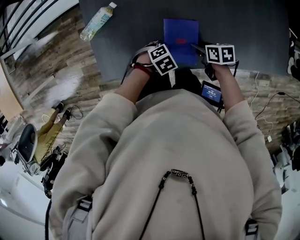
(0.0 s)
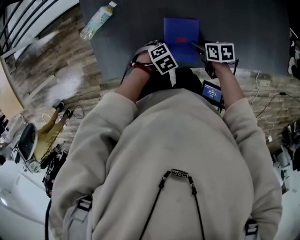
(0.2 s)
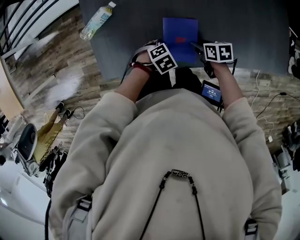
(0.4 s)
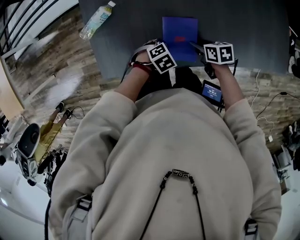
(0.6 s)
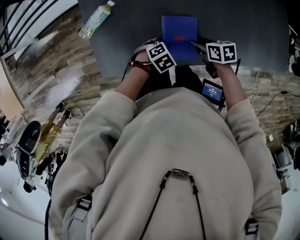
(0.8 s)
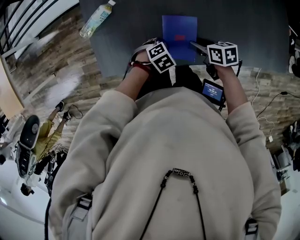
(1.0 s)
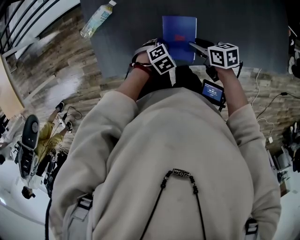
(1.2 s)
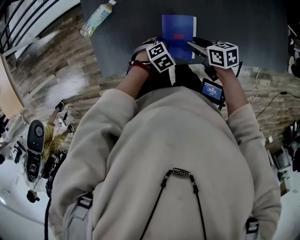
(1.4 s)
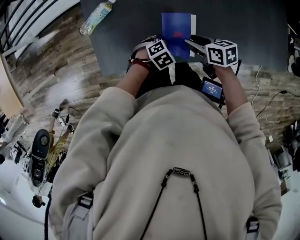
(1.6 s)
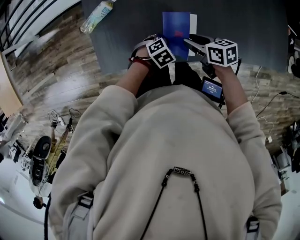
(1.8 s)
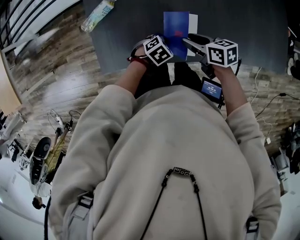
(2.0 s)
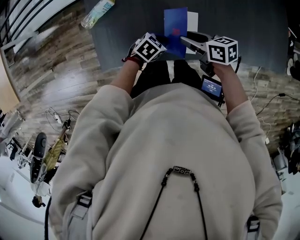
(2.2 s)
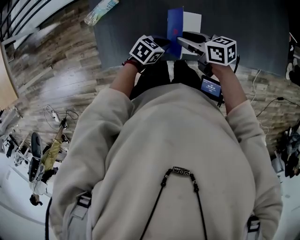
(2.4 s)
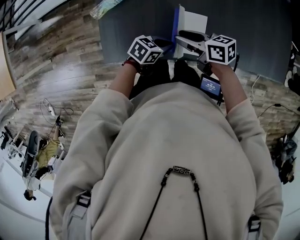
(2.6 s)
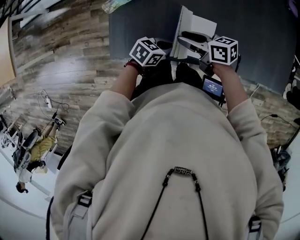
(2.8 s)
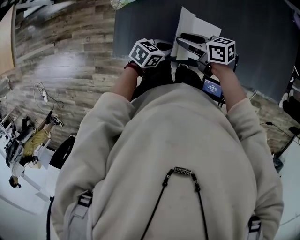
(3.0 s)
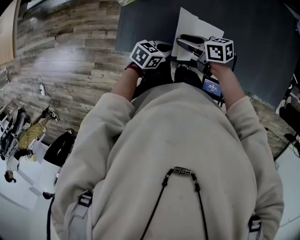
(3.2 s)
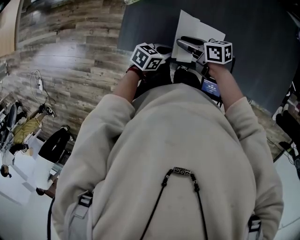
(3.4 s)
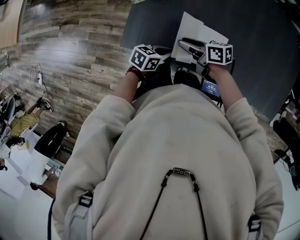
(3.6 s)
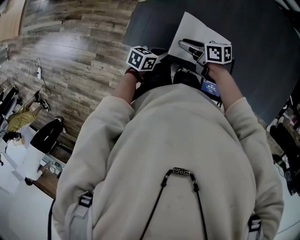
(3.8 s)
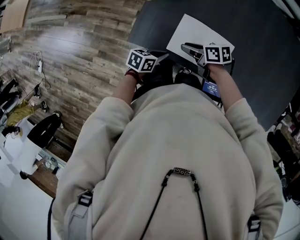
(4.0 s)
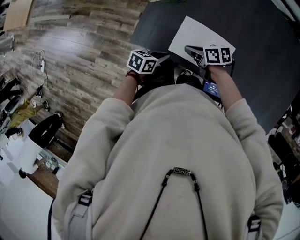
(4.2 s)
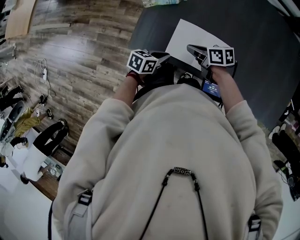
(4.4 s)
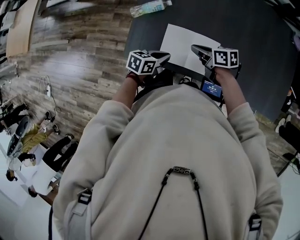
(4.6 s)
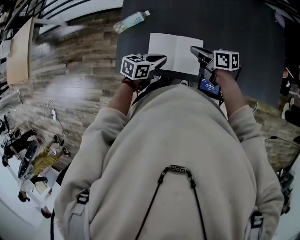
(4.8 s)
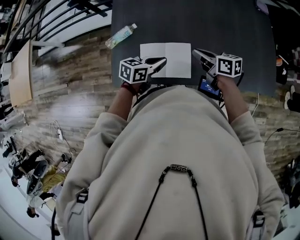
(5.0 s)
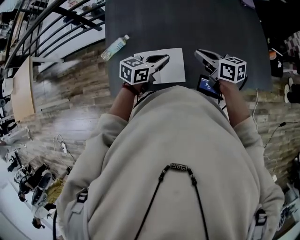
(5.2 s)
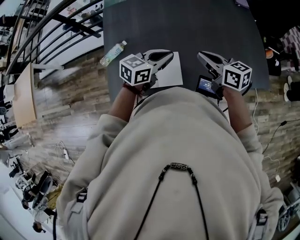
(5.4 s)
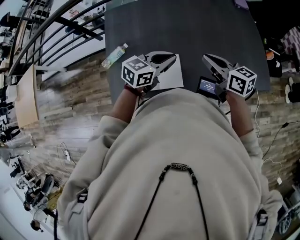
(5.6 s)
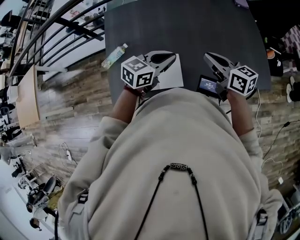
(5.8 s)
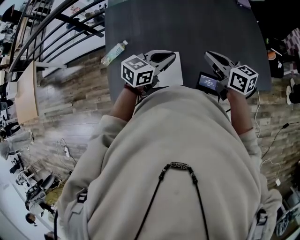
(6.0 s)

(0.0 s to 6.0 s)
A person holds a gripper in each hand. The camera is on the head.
0.0 s - 1.6 s: The right gripper is displaced upward by some 5 cm.
1.6 s - 3.0 s: The left gripper moves upward, some 10 cm, and tilts its fingers approximately 40 degrees upward, while the right gripper moves roughly 15 cm, and turns by about 20 degrees.
3.0 s - 4.4 s: The right gripper closes its fingers, while the left gripper changes place by about 10 cm, and turns by roughly 20 degrees.
4.4 s - 6.0 s: The right gripper shifts by roughly 40 cm, and turns by roughly 50 degrees, while the left gripper shifts by some 35 cm, and changes its angle by about 40 degrees.

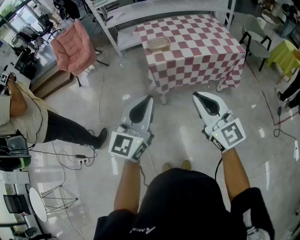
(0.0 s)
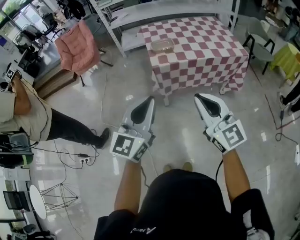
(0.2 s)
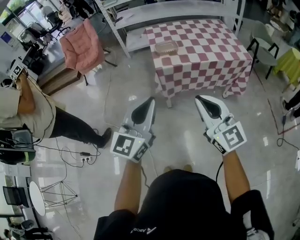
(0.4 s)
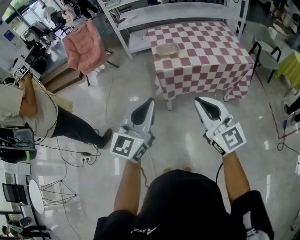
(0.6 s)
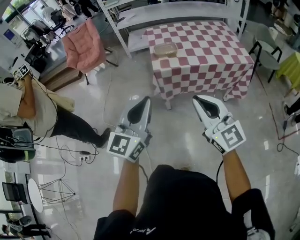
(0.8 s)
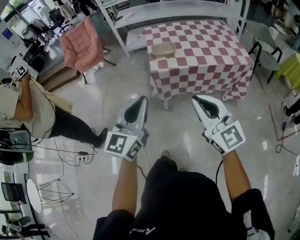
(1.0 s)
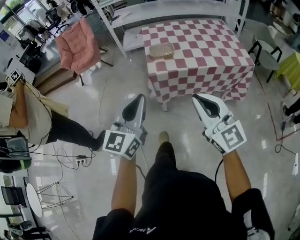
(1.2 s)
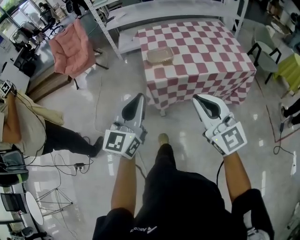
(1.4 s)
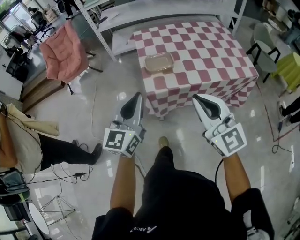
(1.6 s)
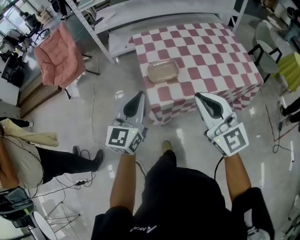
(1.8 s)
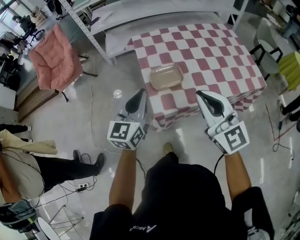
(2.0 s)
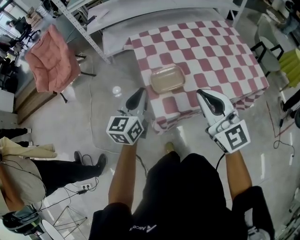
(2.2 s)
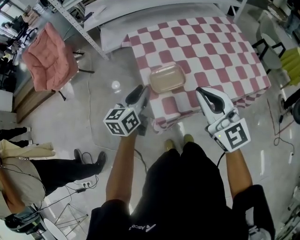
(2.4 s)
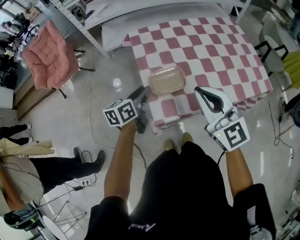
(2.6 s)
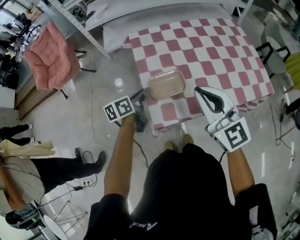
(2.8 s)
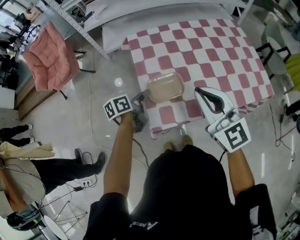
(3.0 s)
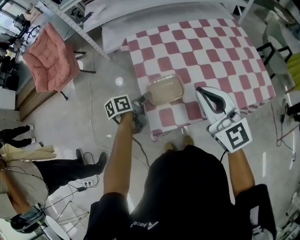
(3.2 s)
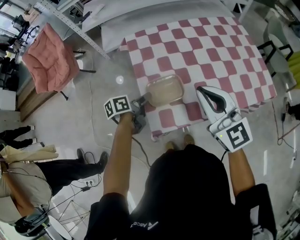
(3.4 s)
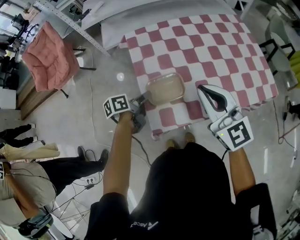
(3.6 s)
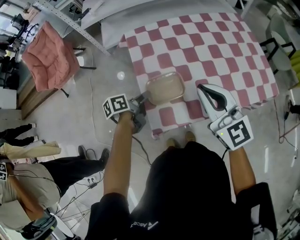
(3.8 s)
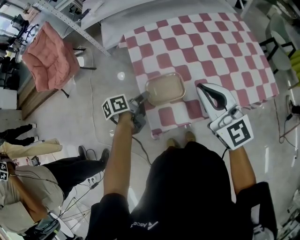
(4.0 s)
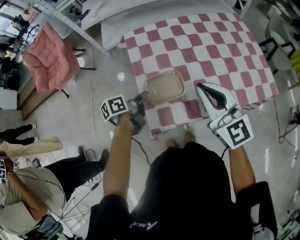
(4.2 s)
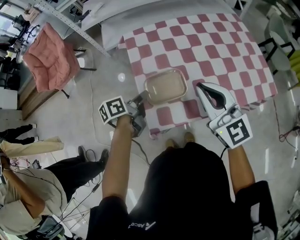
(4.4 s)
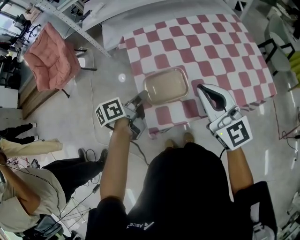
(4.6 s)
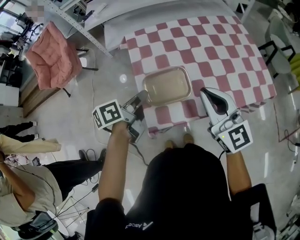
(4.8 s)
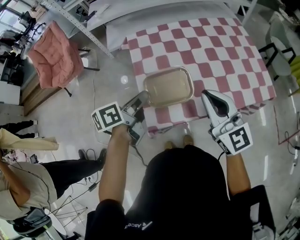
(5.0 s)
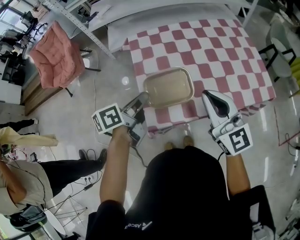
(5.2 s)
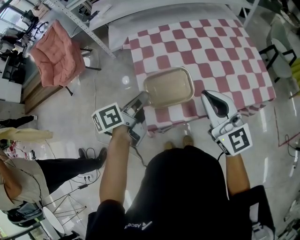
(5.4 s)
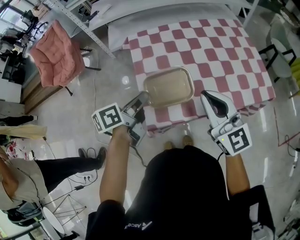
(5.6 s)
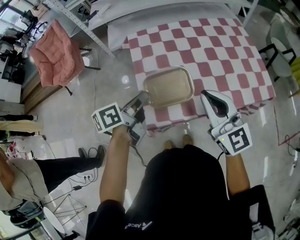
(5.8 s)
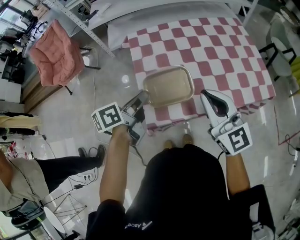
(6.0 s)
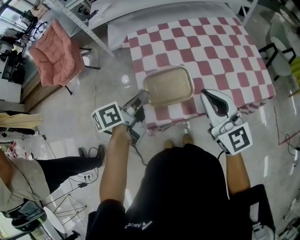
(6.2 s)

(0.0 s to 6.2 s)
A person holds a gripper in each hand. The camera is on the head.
0.0 s - 1.6 s: The grippers both shift forward by approximately 30 cm.
1.6 s - 3.2 s: The right gripper goes about 30 cm forward. The left gripper goes approximately 40 cm forward and downward, rotates around the line of its fingers by approximately 60 degrees, counterclockwise from behind, and opens.
3.2 s - 4.6 s: The left gripper travels upward by about 10 cm, and closes.
4.6 s - 6.2 s: The left gripper goes roughly 5 cm upward.

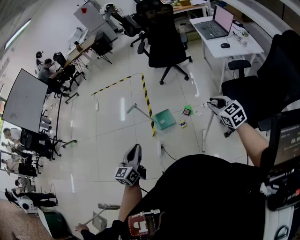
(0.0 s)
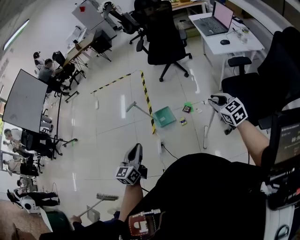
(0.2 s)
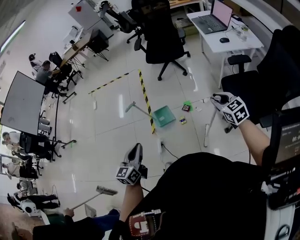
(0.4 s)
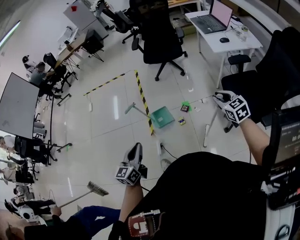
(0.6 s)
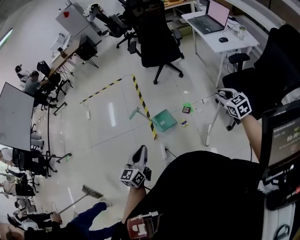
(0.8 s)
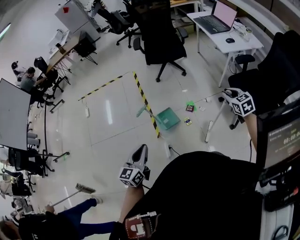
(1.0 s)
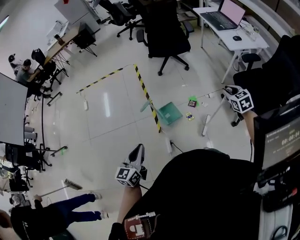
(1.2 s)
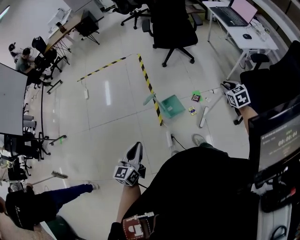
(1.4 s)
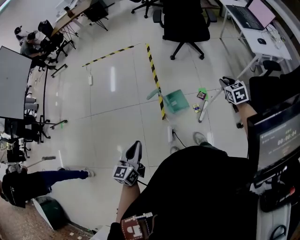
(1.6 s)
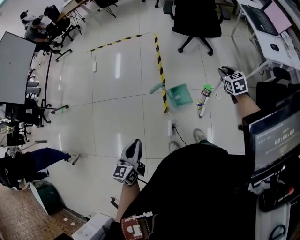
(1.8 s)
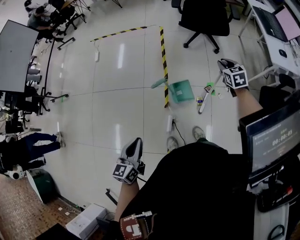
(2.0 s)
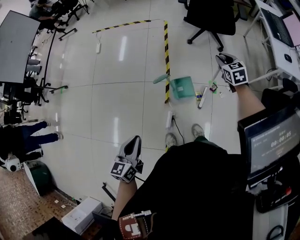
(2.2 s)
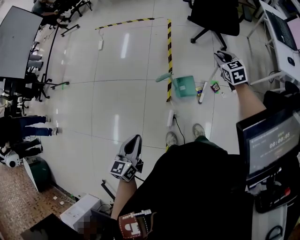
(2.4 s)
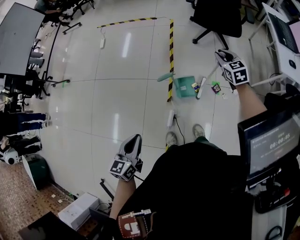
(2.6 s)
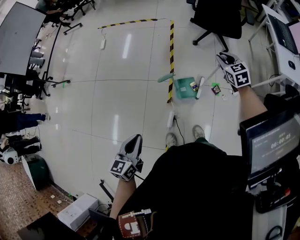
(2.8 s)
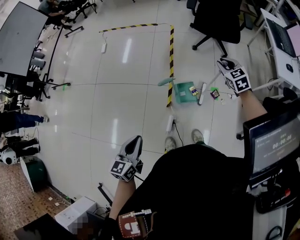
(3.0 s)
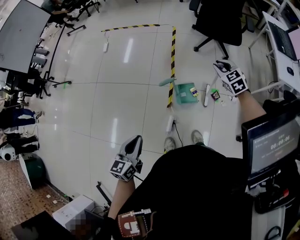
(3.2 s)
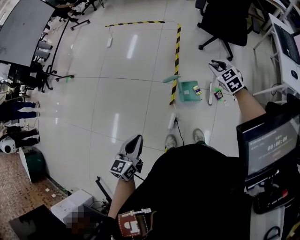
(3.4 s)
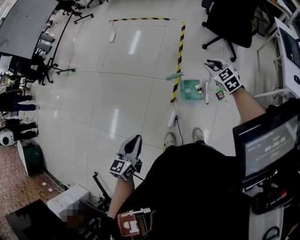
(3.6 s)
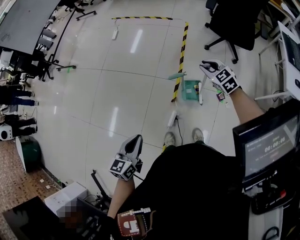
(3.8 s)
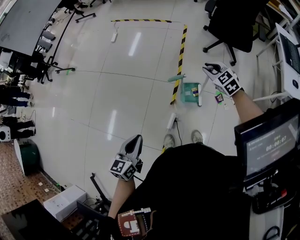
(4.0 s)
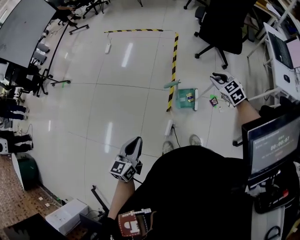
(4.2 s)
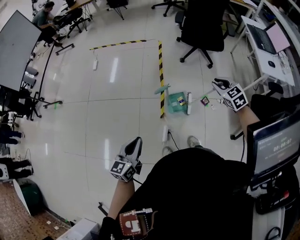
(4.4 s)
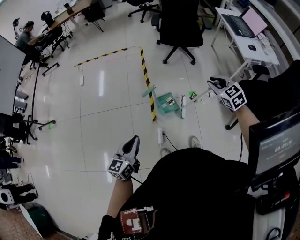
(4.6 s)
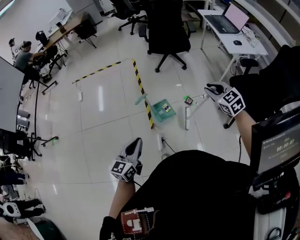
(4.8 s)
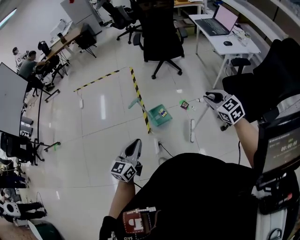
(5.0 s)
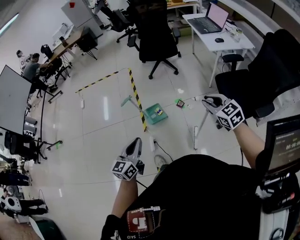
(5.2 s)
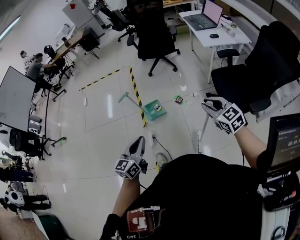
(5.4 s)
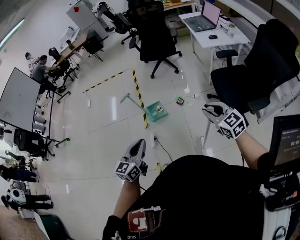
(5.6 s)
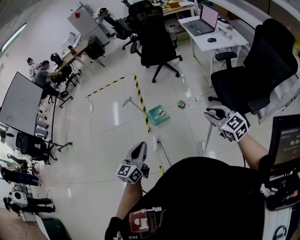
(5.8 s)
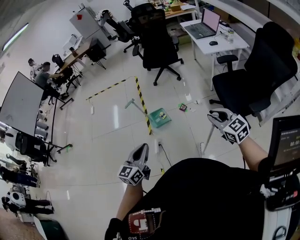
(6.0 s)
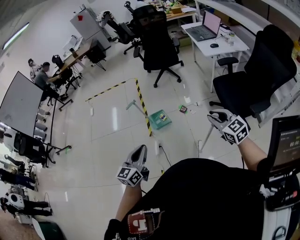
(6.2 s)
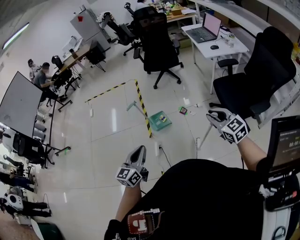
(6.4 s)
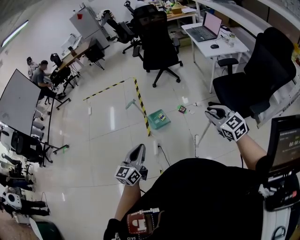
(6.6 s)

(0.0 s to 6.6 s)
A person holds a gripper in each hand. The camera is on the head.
0.0 s - 1.6 s: The right gripper shifts roughly 35 cm forward, to the left and downward, and swivels roughly 20 degrees. Meanwhile the left gripper moves to the left, some 25 cm.
1.6 s - 3.2 s: The right gripper moves to the left and forward, about 20 cm, and rotates about 30 degrees.
3.2 s - 5.0 s: The right gripper changes place by roughly 40 cm, while the left gripper moves approximately 15 cm, and turns by approximately 30 degrees.
5.0 s - 6.6 s: Both grippers move backward and to the right, about 20 cm.

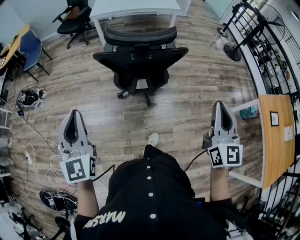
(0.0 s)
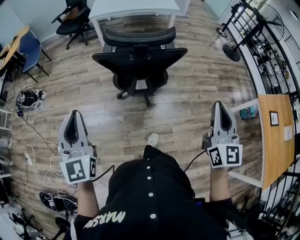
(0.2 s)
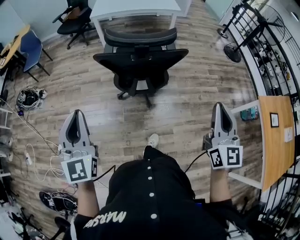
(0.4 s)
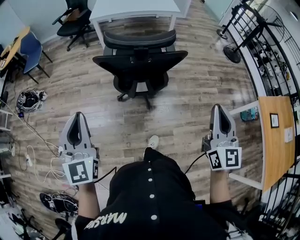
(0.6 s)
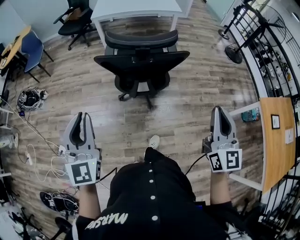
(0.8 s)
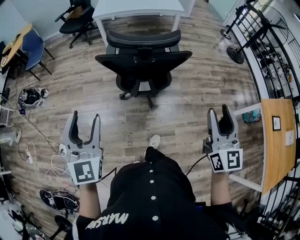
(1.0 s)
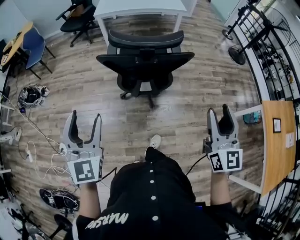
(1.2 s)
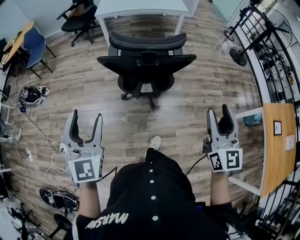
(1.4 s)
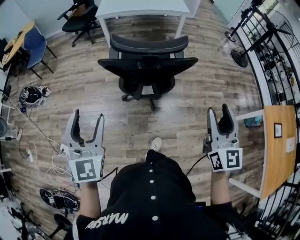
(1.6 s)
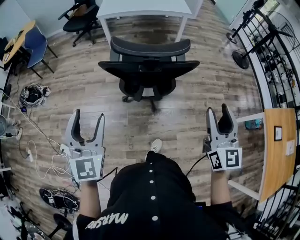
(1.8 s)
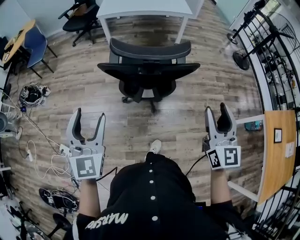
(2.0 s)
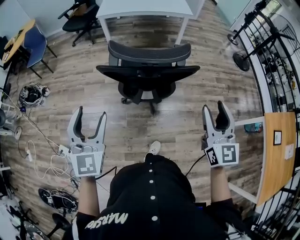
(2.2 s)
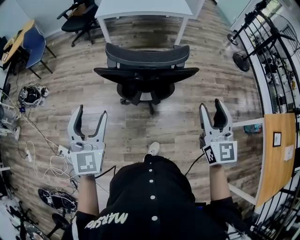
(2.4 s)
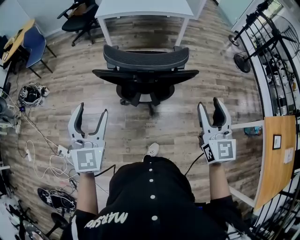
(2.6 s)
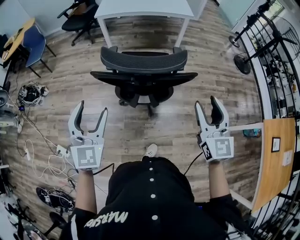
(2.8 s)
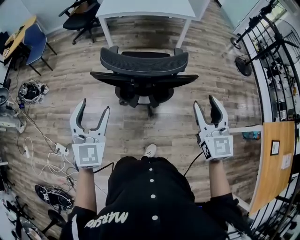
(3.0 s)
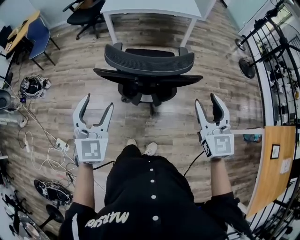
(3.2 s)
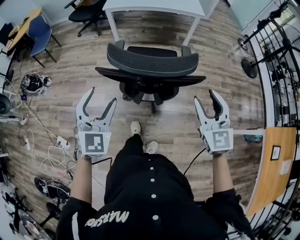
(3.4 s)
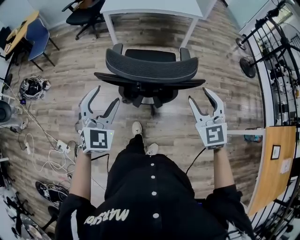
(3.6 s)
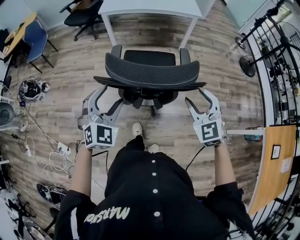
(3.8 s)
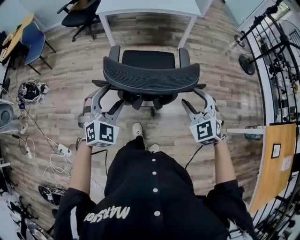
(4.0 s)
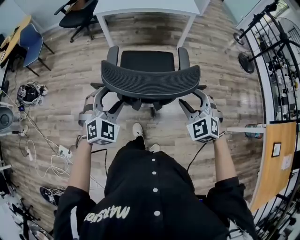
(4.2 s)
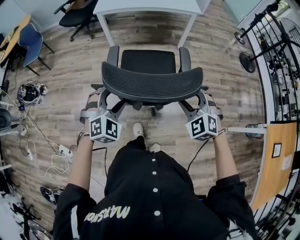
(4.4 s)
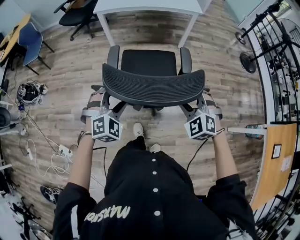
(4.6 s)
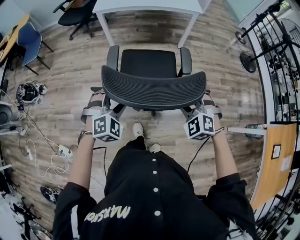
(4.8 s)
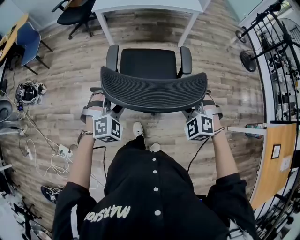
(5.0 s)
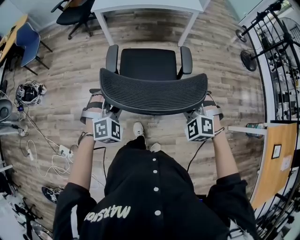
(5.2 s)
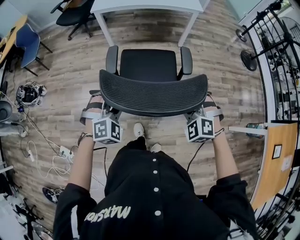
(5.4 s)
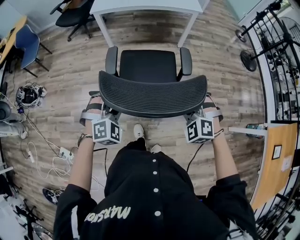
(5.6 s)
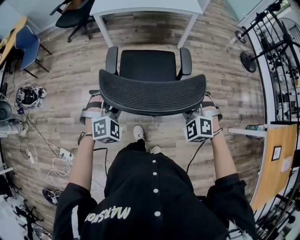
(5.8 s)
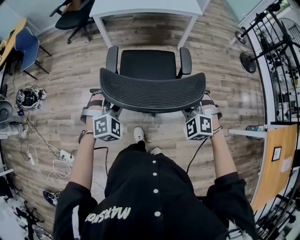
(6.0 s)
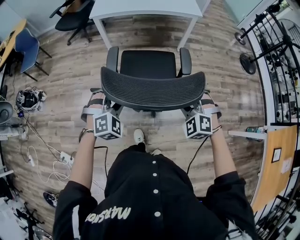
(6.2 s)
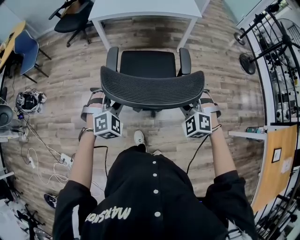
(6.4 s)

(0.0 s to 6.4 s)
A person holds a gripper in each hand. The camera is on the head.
0.0 s - 1.6 s: The left gripper ends up approximately 5 cm from where it was, and opens its fingers; the right gripper travels forward by about 5 cm, and opens up.
1.6 s - 3.2 s: The right gripper heads forward, covering about 15 cm, while the left gripper shifts approximately 10 cm forward and to the right.
3.2 s - 4.8 s: The left gripper heads downward and forward, covering some 20 cm, and changes its angle by about 50 degrees, while the right gripper goes about 20 cm downward, forward and to the left, and tilts its fingers approximately 30 degrees downward.
4.8 s - 6.4 s: Both grippers move forward, some 10 cm.
